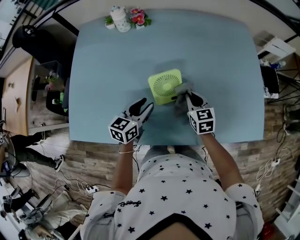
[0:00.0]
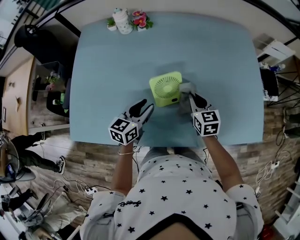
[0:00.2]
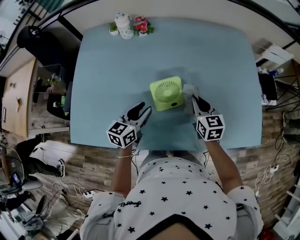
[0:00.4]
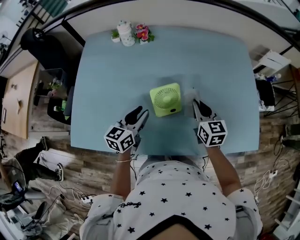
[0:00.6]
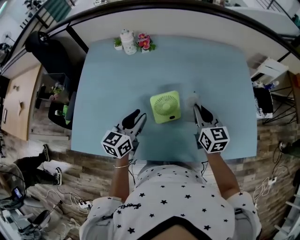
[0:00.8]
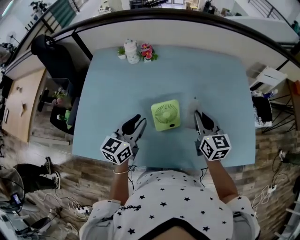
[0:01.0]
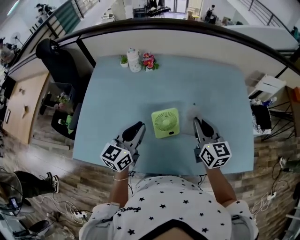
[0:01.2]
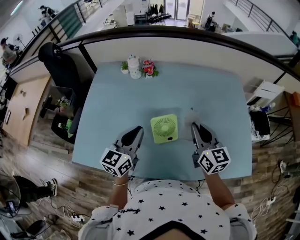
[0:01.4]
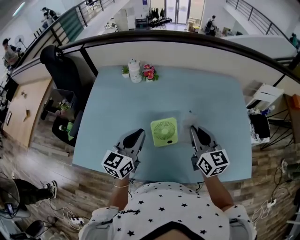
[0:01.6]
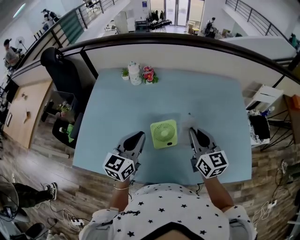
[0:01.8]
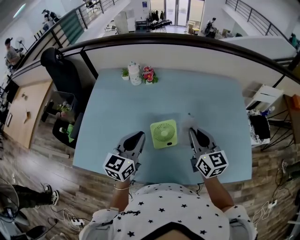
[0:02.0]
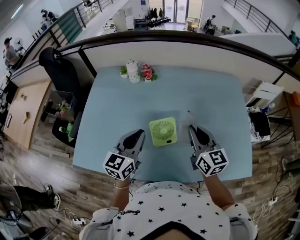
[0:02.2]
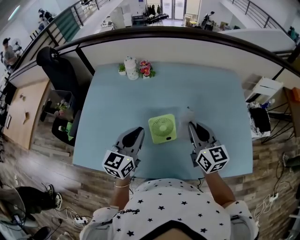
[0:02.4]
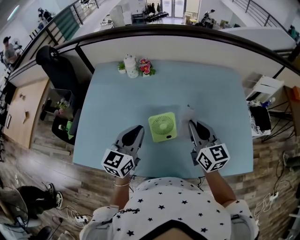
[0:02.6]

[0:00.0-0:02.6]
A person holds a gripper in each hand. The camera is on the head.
0:00.0 to 0:01.2: Both grippers travel together upward, some 15 cm. The left gripper rotates roughly 20 degrees, and closes; the right gripper swivels about 30 degrees.
0:01.2 to 0:02.6: The grippers stay close to where they were, moving slightly.

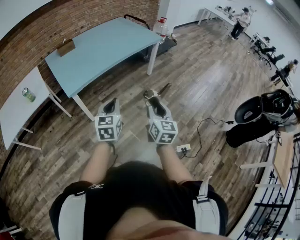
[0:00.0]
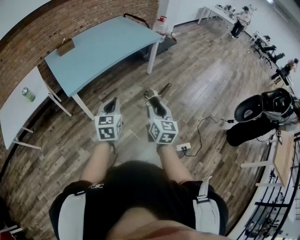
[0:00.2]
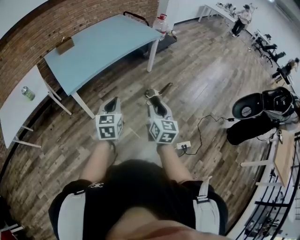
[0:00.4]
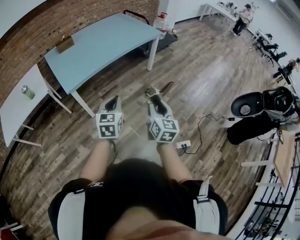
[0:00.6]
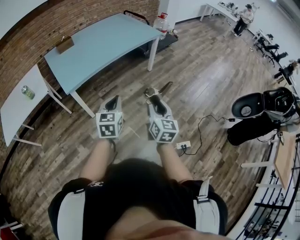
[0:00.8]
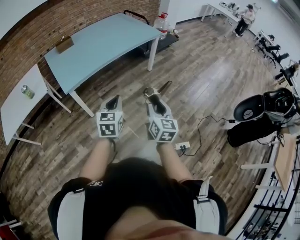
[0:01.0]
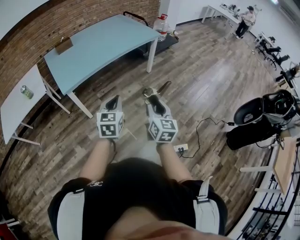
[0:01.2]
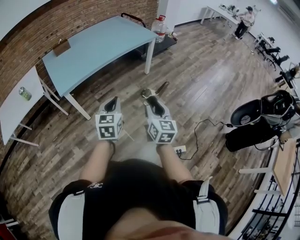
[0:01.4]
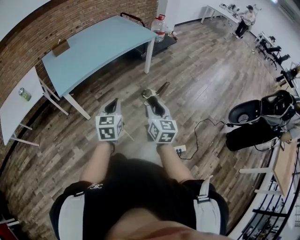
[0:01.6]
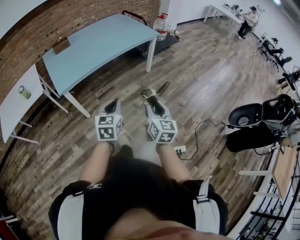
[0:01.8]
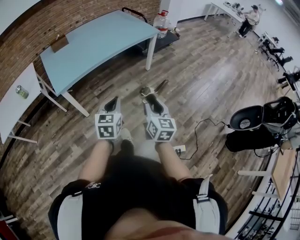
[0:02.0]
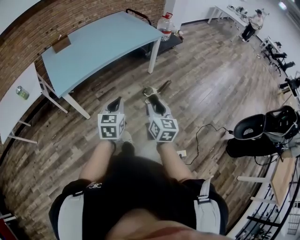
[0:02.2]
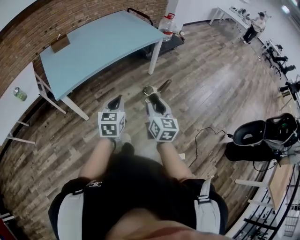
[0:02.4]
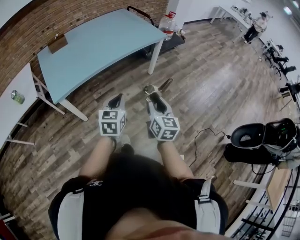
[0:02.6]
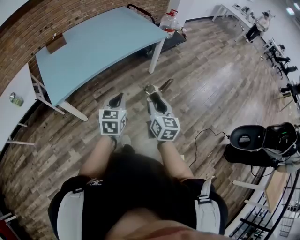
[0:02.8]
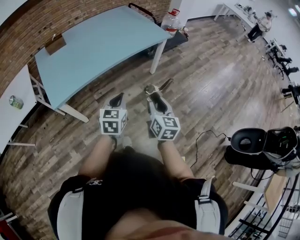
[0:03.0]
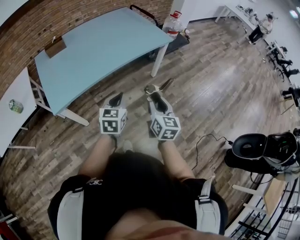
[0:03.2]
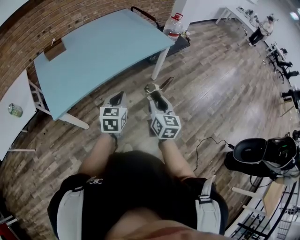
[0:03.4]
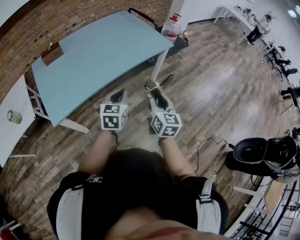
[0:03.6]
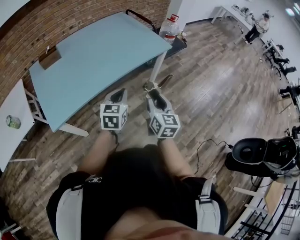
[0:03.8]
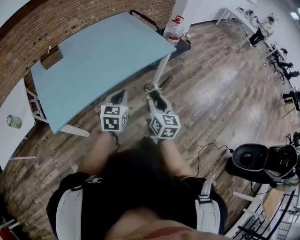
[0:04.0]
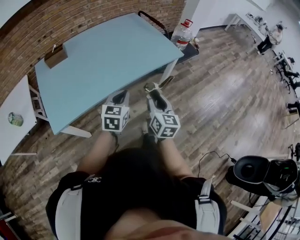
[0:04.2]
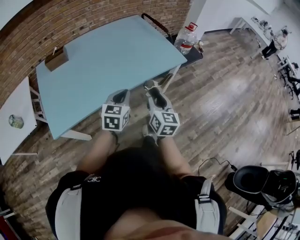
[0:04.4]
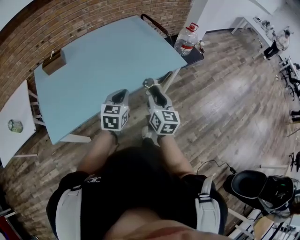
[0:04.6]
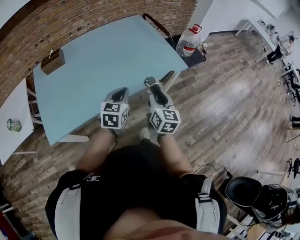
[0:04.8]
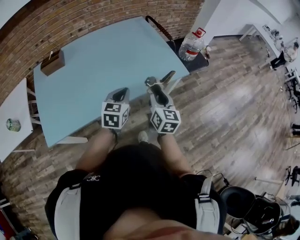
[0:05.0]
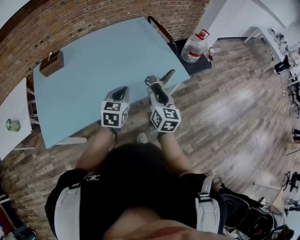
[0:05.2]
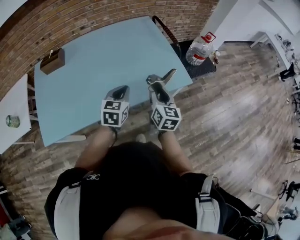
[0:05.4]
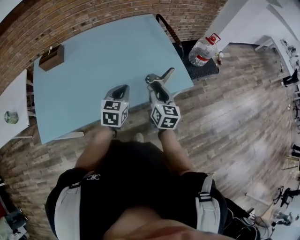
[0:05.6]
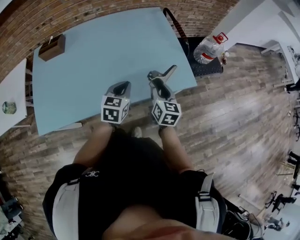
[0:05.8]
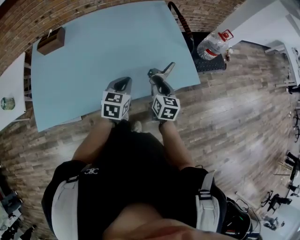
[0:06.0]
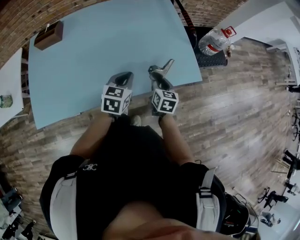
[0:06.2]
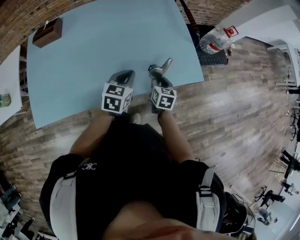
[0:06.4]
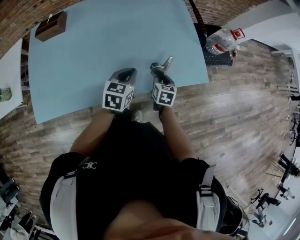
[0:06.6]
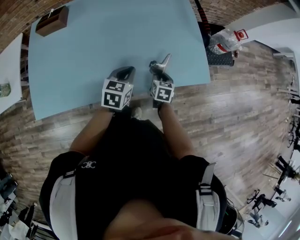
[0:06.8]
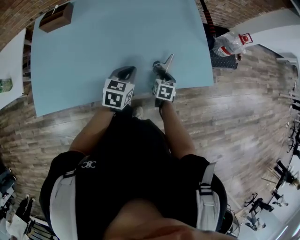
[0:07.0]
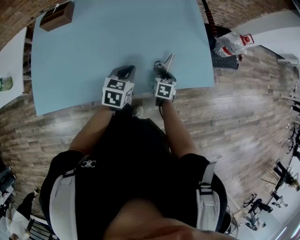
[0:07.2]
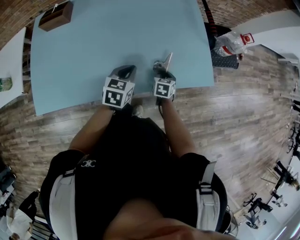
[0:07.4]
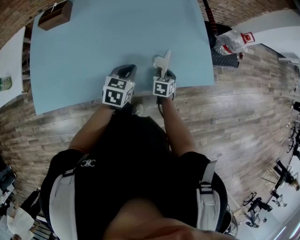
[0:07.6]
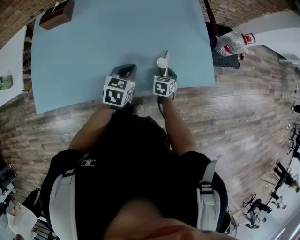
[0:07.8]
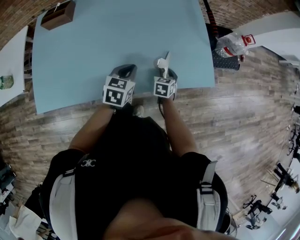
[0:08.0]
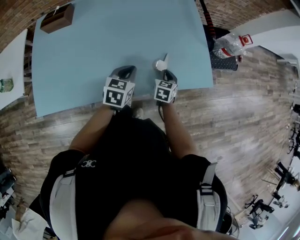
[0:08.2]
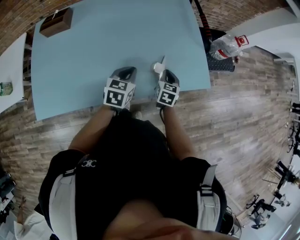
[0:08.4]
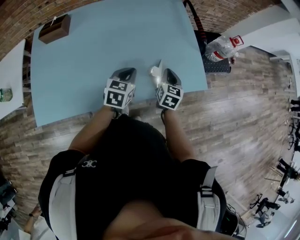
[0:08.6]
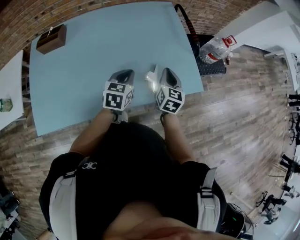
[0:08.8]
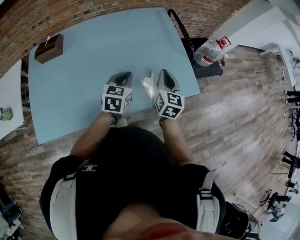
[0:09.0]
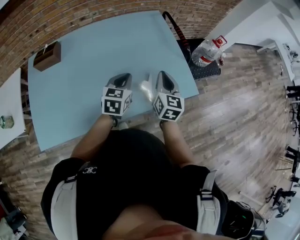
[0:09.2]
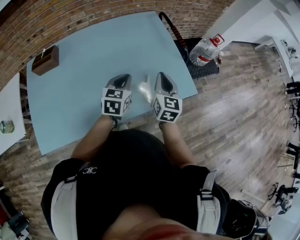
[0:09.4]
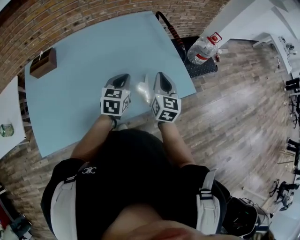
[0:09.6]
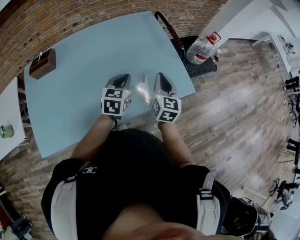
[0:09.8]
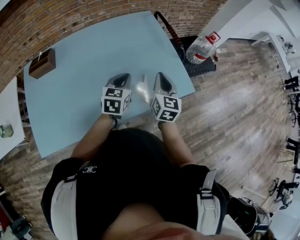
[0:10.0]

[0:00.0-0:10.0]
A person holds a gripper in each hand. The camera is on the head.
0:00.0 to 0:01.4: Both grippers travel together to the right, roughly 10 cm.
0:01.4 to 0:02.8: The grippers both shift forward by approximately 20 cm.
0:02.8 to 0:04.2: Both grippers travel together forward, roughly 25 cm.
0:04.2 to 0:05.8: The two grippers go some 30 cm forward.
0:05.8 to 0:07.2: The left gripper goes roughly 10 cm to the left and downward, while the right gripper travels downward by roughly 20 cm, and angles its fingers downward, by some 30 degrees.
0:07.2 to 0:08.6: The right gripper shifts roughly 15 cm upward, rotates approximately 20 degrees, and closes.
0:08.6 to 0:10.0: The left gripper shifts roughly 10 cm upward and forward. Meanwhile the right gripper shifts some 10 cm upward.

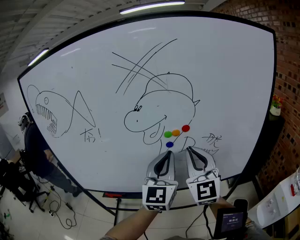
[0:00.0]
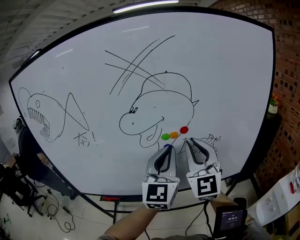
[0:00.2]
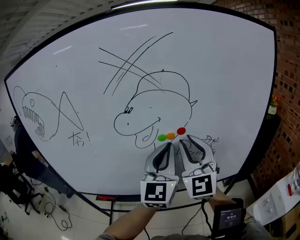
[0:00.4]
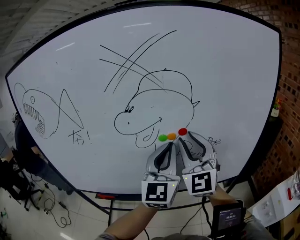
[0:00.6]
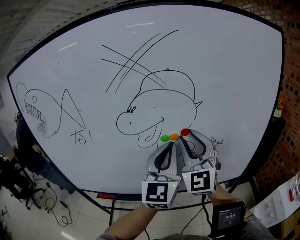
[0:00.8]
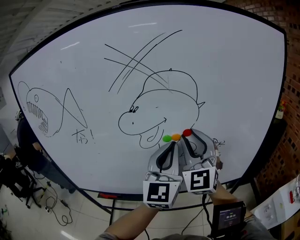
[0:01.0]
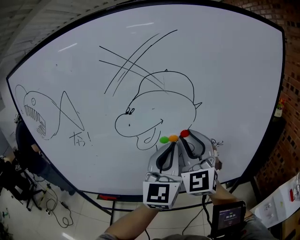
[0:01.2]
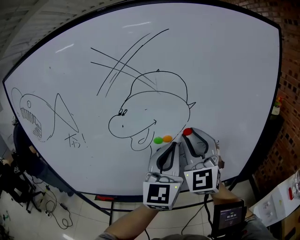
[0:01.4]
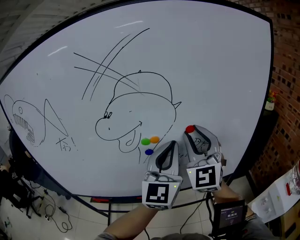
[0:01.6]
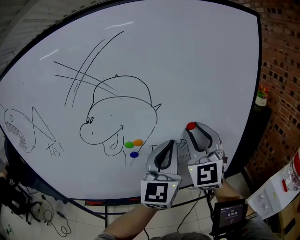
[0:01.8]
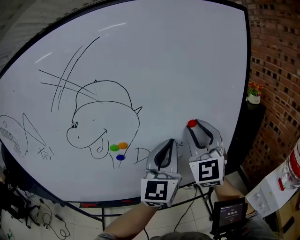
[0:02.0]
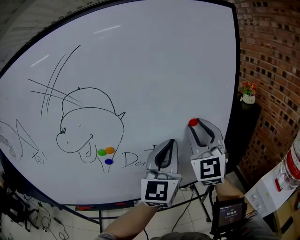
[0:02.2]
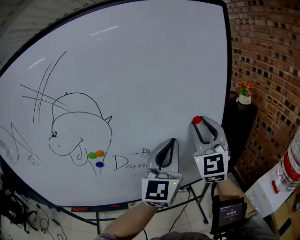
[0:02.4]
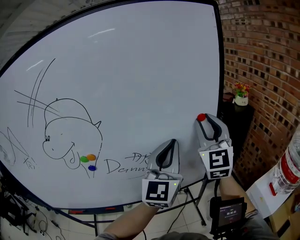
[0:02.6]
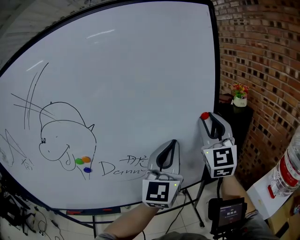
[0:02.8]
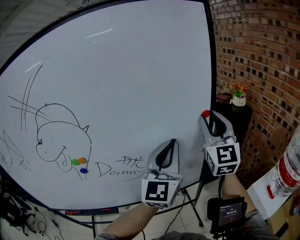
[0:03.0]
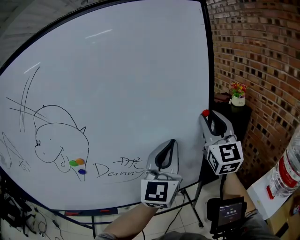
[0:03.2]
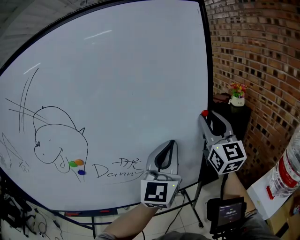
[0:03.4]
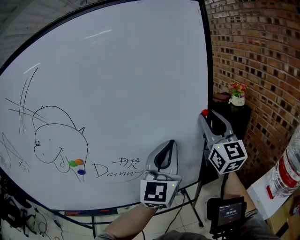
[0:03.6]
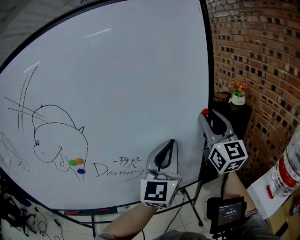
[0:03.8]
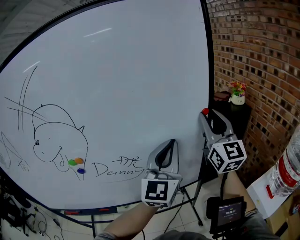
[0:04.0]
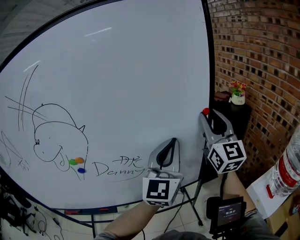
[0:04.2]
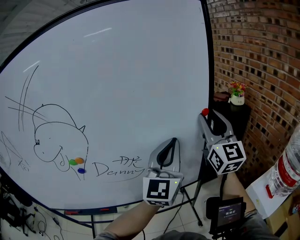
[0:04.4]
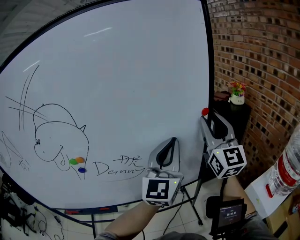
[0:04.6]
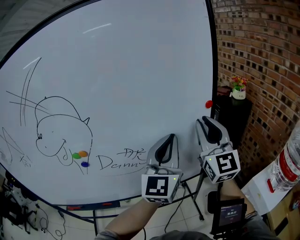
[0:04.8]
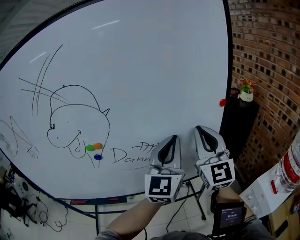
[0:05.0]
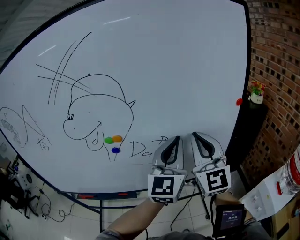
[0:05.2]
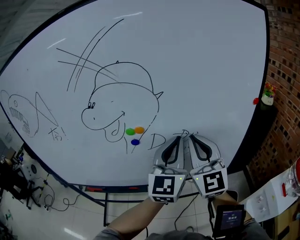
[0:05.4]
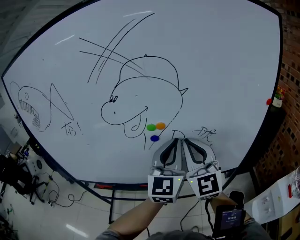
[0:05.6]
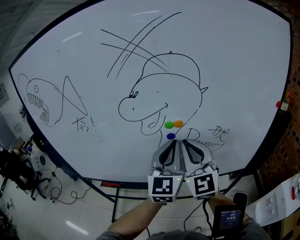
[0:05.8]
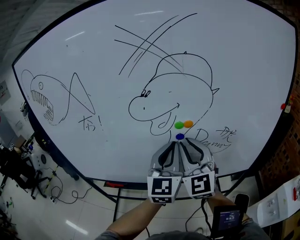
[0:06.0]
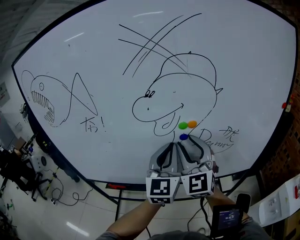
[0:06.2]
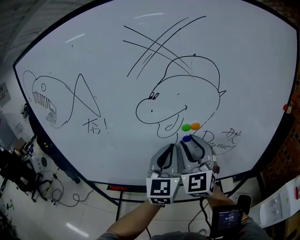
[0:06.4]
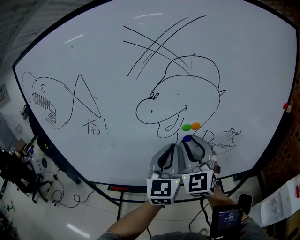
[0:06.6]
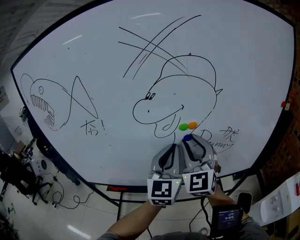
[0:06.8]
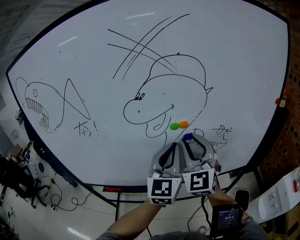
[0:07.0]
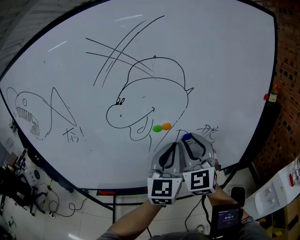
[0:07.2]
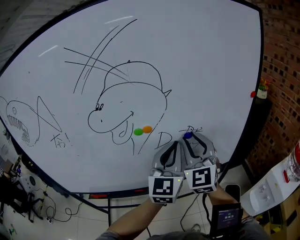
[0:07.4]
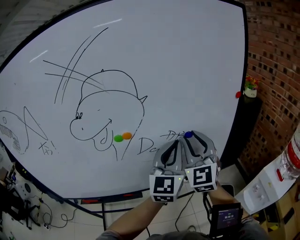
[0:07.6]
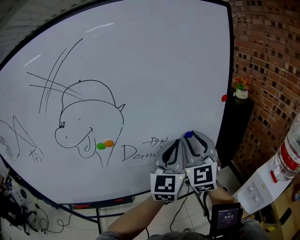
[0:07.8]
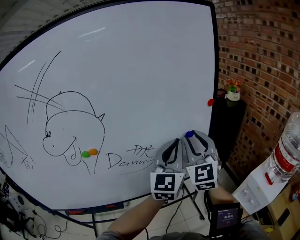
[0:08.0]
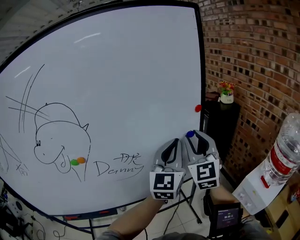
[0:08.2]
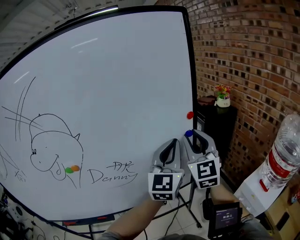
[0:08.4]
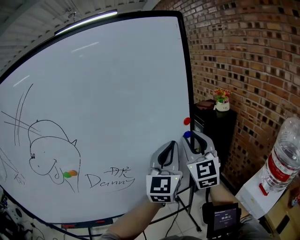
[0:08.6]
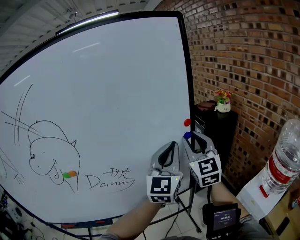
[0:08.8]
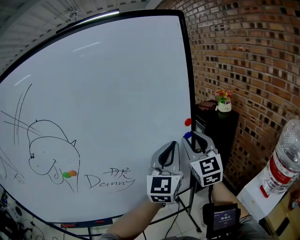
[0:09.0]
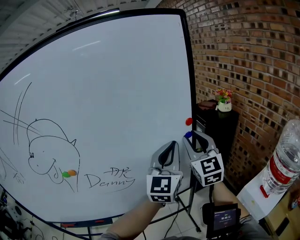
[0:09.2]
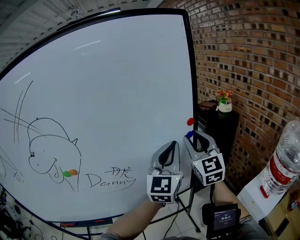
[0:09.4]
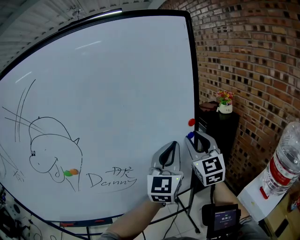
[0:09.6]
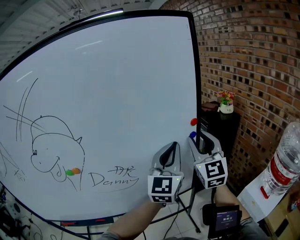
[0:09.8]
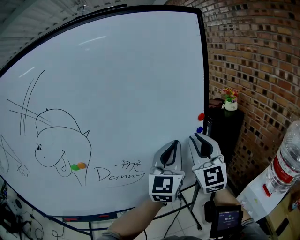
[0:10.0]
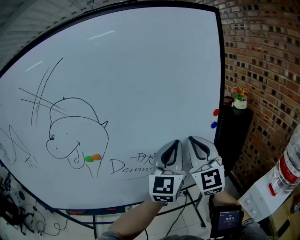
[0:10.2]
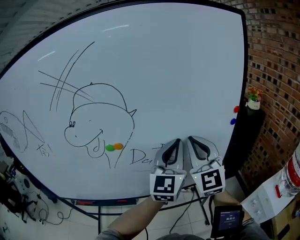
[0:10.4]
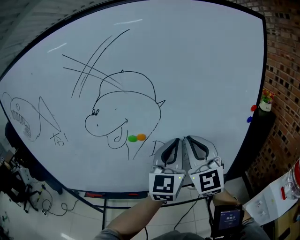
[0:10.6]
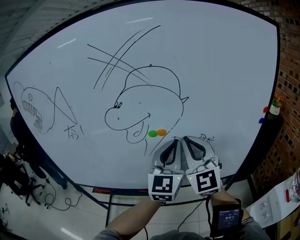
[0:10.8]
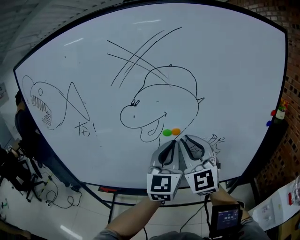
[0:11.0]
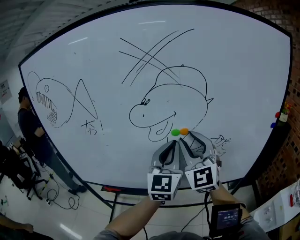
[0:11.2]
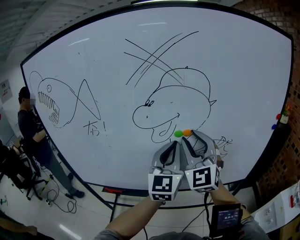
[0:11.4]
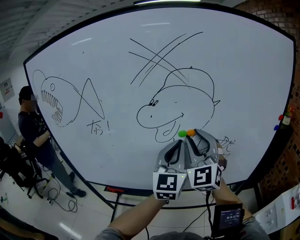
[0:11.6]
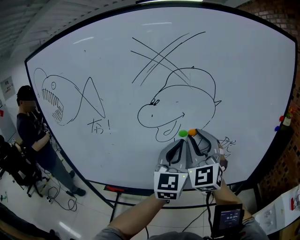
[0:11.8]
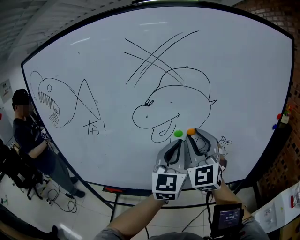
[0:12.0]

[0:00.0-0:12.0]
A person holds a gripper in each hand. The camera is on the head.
0:00.0 to 0:01.6: The right gripper travels forward and to the right by some 10 cm, and opens its fingers. Meanwhile the left gripper is displaced to the right by about 5 cm.
0:01.6 to 0:03.0: The two grippers go some 25 cm to the right.
0:03.0 to 0:04.4: The grippers make only small movements.
0:04.4 to 0:06.0: The two grippers go approximately 40 cm to the left. The right gripper changes its angle by approximately 30 degrees, while the left gripper turns by roughly 20 degrees.
0:06.0 to 0:07.6: Both grippers travel together to the right, about 20 cm. The right gripper turns by some 20 degrees.
0:07.6 to 0:09.0: Both grippers travel together to the right and forward, some 25 cm.
0:09.0 to 0:10.4: The right gripper shifts some 20 cm to the left and backward, and closes up, while the left gripper goes some 15 cm to the left.
0:10.4 to 0:12.0: The grippers both shift to the left by about 20 cm. The right gripper opens.
